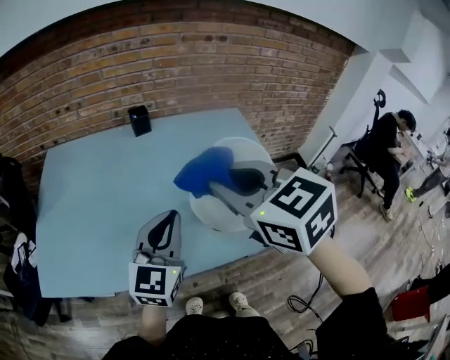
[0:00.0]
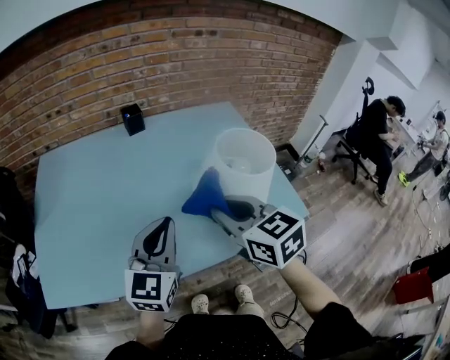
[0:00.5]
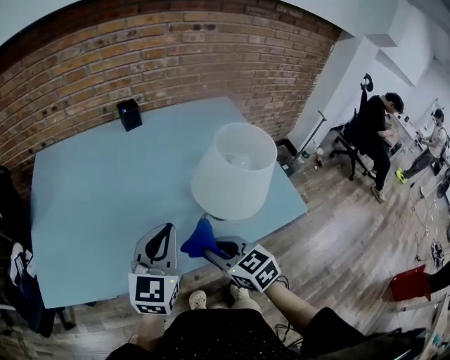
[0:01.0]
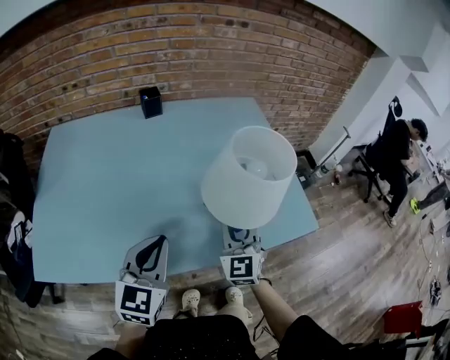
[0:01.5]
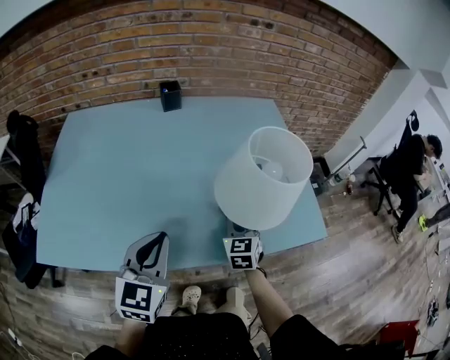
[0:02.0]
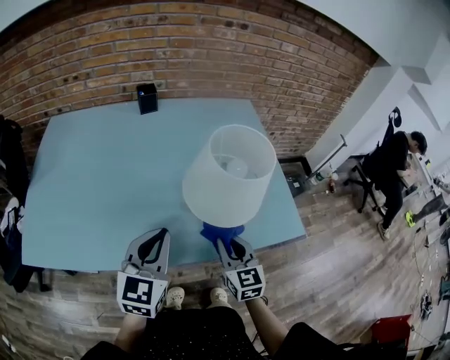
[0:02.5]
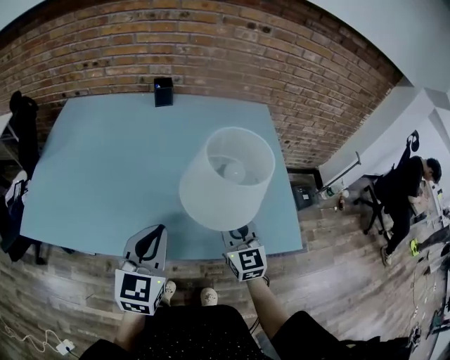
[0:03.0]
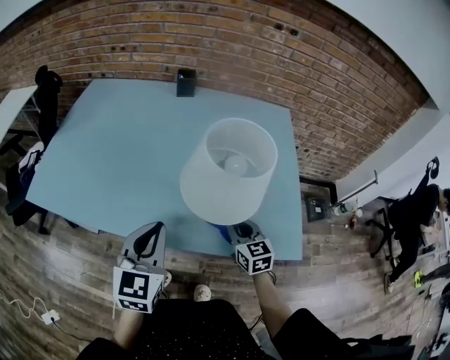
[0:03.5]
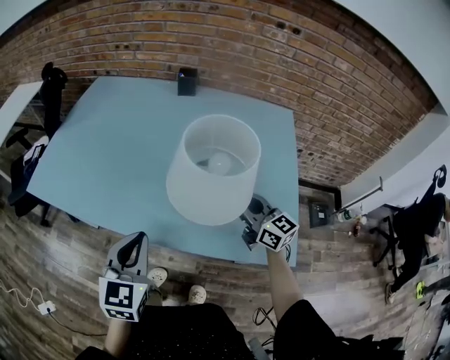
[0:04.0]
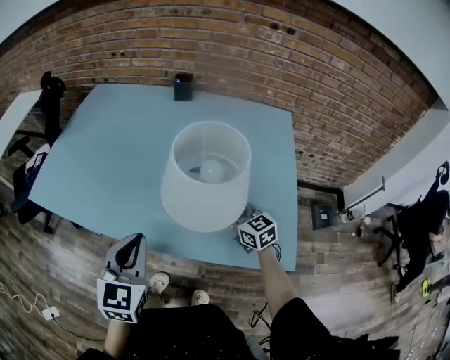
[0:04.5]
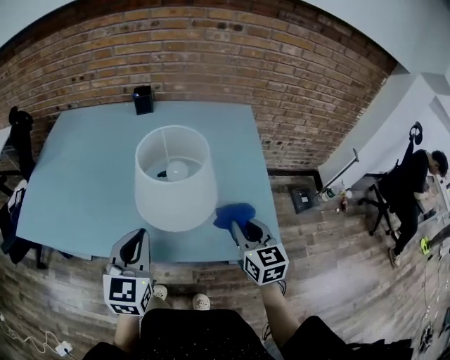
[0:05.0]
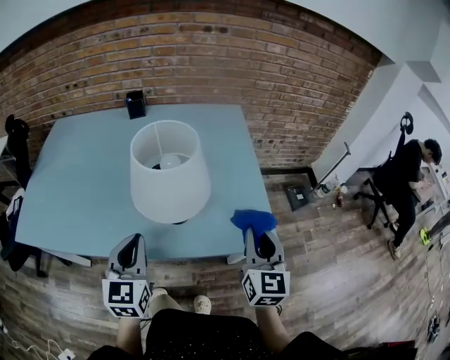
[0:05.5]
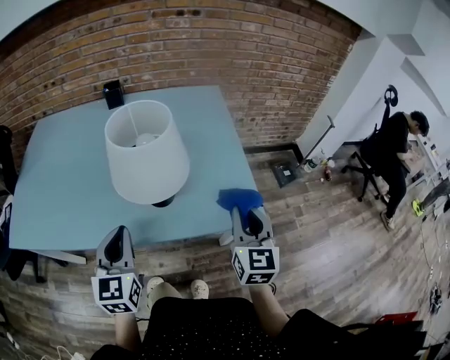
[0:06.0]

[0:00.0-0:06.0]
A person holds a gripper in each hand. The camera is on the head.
0:00.0 to 0:02.0: The left gripper goes roughly 10 cm downward, to the left and backward. The right gripper travels downward by about 35 cm, and changes its angle by about 30 degrees.
0:02.0 to 0:04.0: The left gripper moves some 15 cm, and turns by some 20 degrees. Meanwhile the right gripper goes up and down, approximately 10 cm each way, reversing 2 times, and changes its angle by about 60 degrees.
0:04.0 to 0:06.0: The right gripper changes place by about 20 cm, and changes its angle by about 60 degrees.

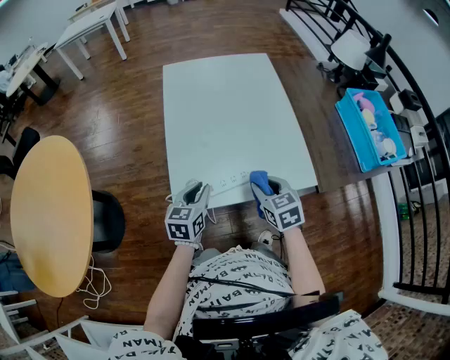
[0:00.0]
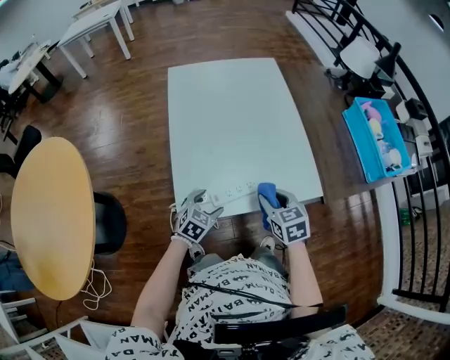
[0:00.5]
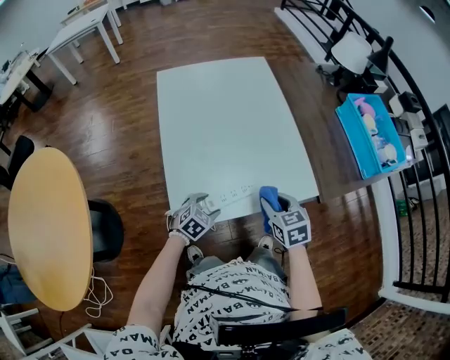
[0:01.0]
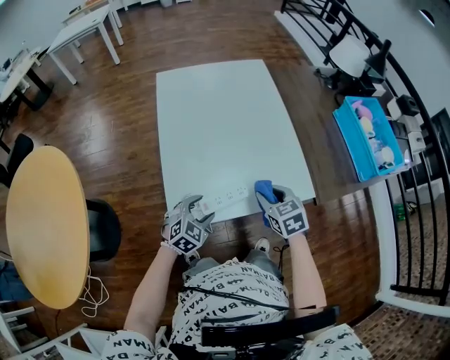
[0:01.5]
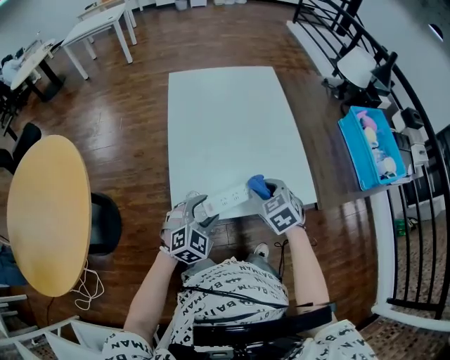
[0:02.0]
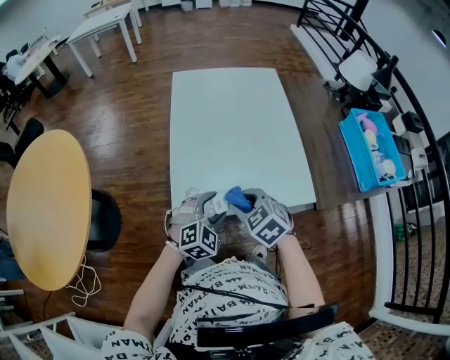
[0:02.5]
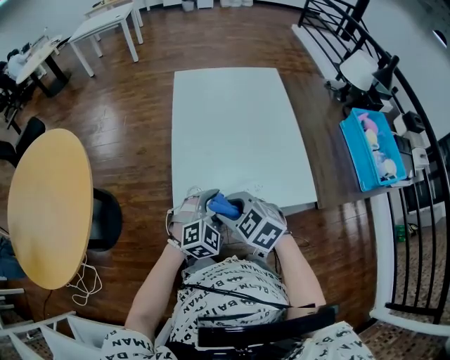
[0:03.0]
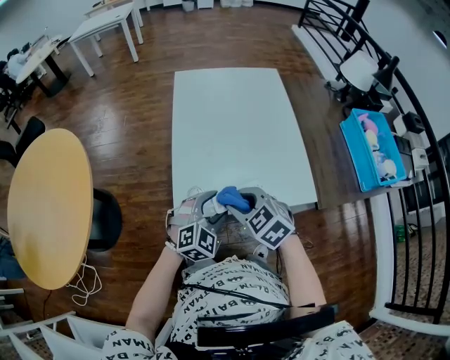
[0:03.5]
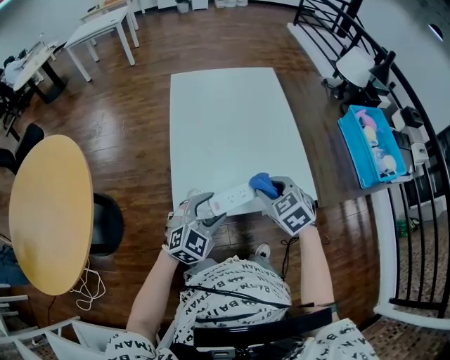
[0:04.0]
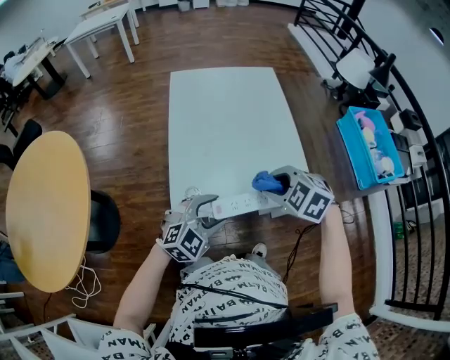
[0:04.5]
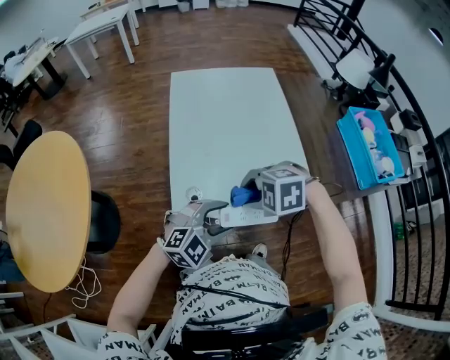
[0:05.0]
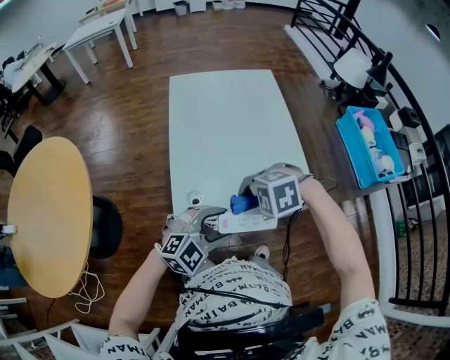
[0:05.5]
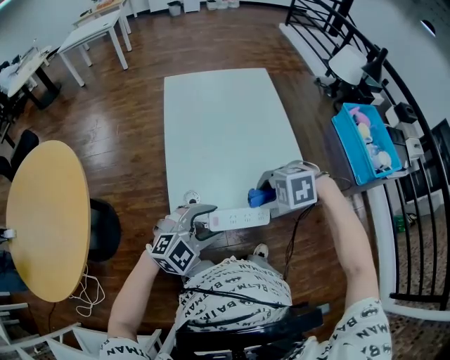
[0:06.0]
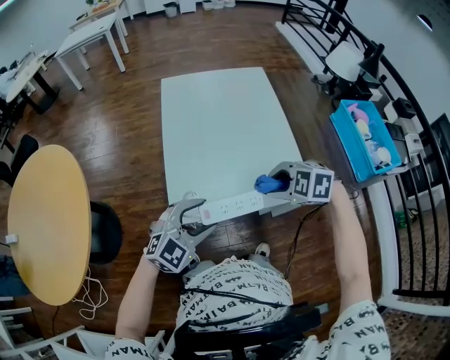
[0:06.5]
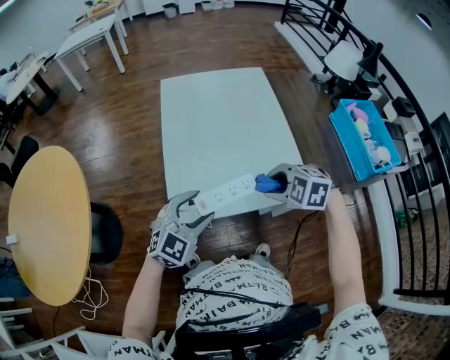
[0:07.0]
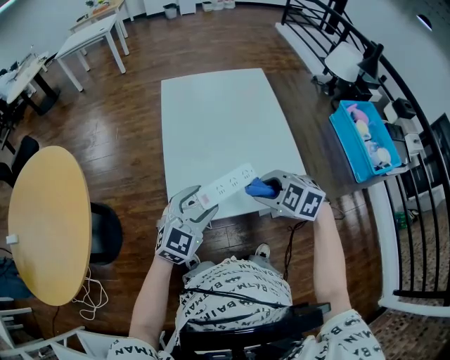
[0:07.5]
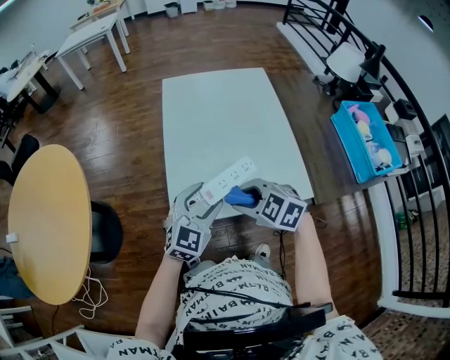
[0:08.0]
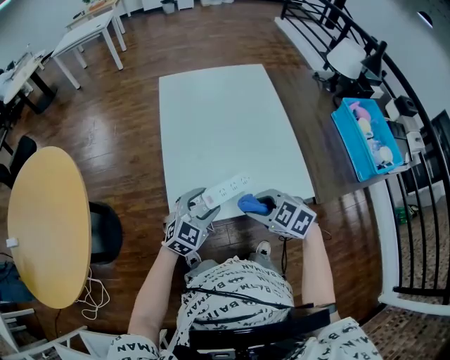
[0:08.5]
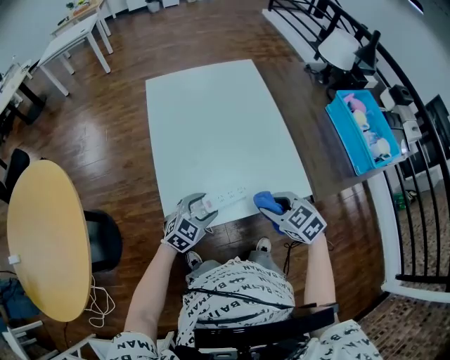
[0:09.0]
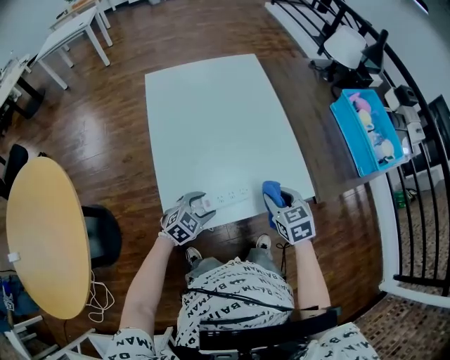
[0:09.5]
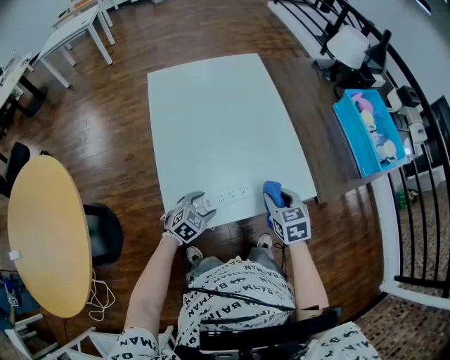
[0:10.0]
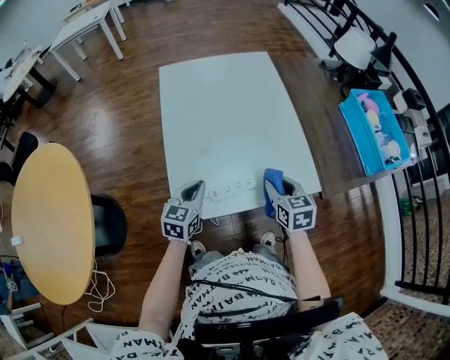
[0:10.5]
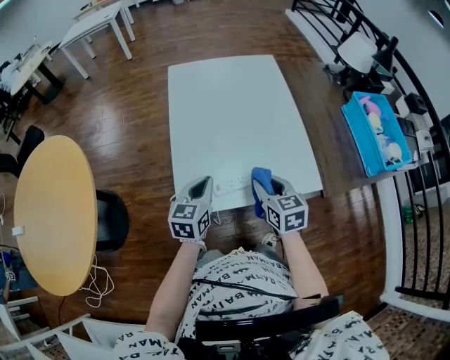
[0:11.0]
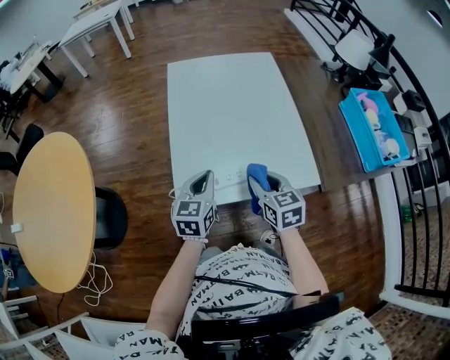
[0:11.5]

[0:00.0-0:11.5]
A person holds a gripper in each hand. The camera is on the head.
0:00.0 to 0:02.0: The left gripper goes downward and returns, some 15 cm each way, rolls clockwise, seen from behind, by approximately 50 degrees, and opens its fingers.
0:02.0 to 0:04.0: The right gripper reaches some 15 cm to the left, then returns.
0:04.0 to 0:06.0: The right gripper turns by about 60 degrees. The left gripper changes place by about 5 cm.
0:06.0 to 0:07.5: The right gripper changes its angle by some 30 degrees. Meanwhile the left gripper ends up some 10 cm from where it was, and changes its angle by about 30 degrees.
0:07.5 to 0:09.5: The right gripper changes place by about 15 cm, and rotates around the line of its fingers by some 40 degrees, clockwise from behind. Meanwhile the left gripper goes approximately 20 cm downward, and turns by approximately 30 degrees.
0:09.5 to 0:11.5: The left gripper is displaced upward by approximately 15 cm, rotates some 50 degrees, and closes its fingers; the right gripper moves to the left and upward, approximately 10 cm.

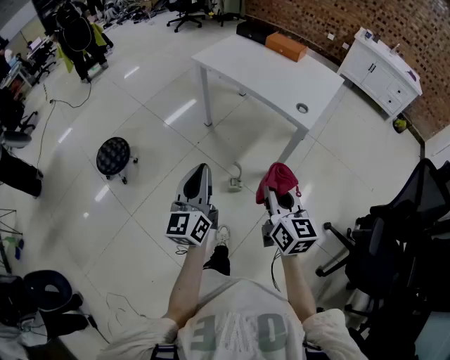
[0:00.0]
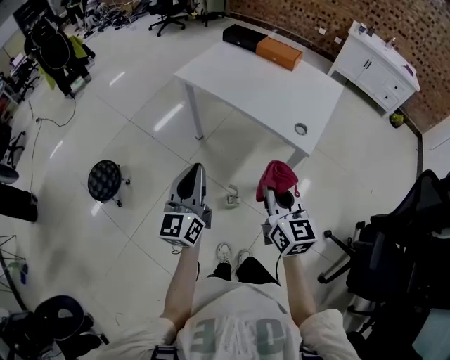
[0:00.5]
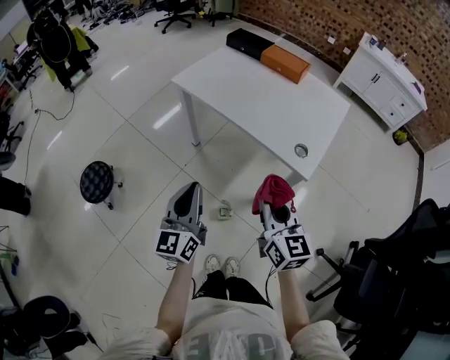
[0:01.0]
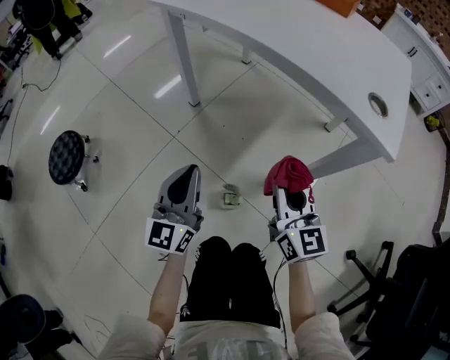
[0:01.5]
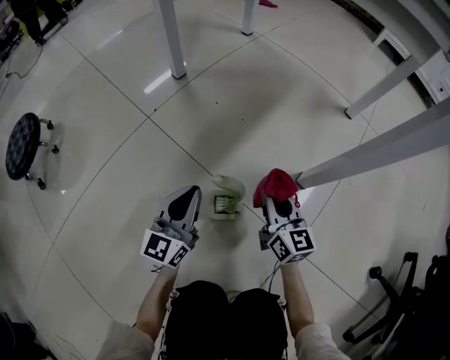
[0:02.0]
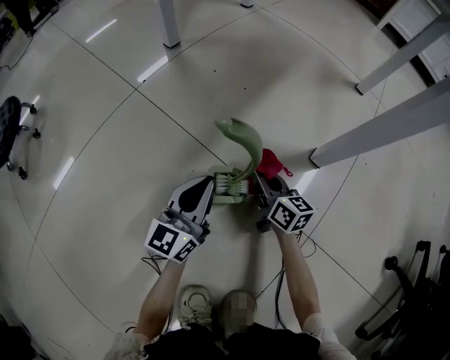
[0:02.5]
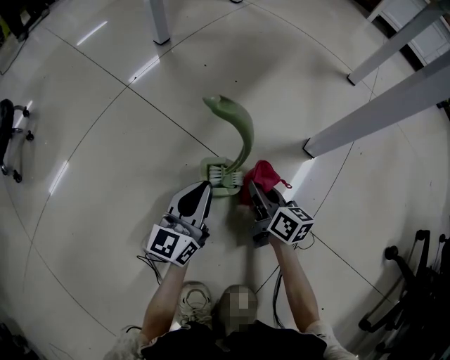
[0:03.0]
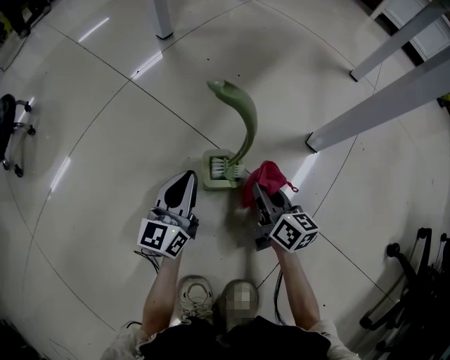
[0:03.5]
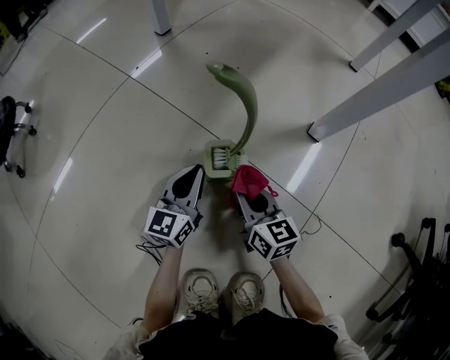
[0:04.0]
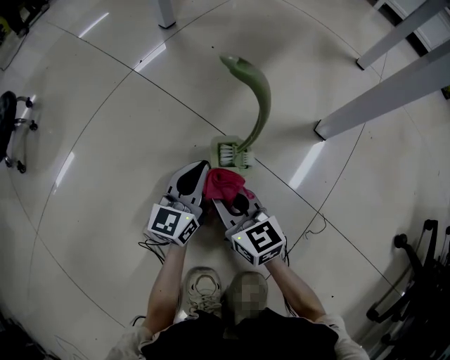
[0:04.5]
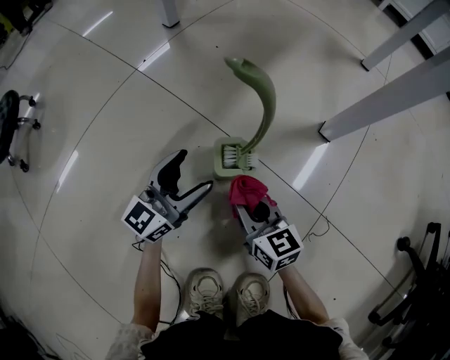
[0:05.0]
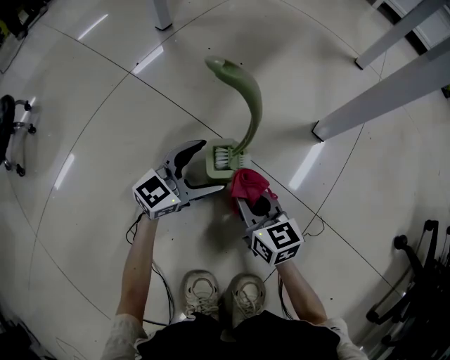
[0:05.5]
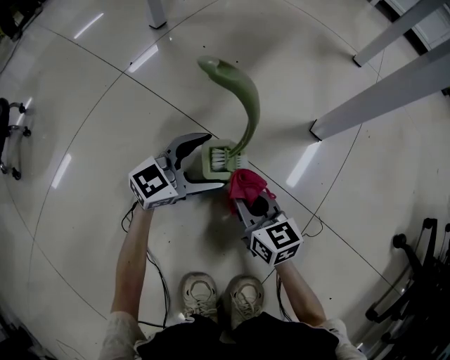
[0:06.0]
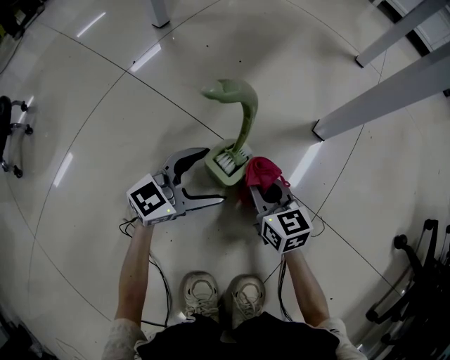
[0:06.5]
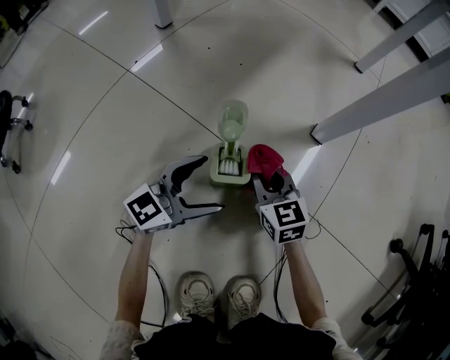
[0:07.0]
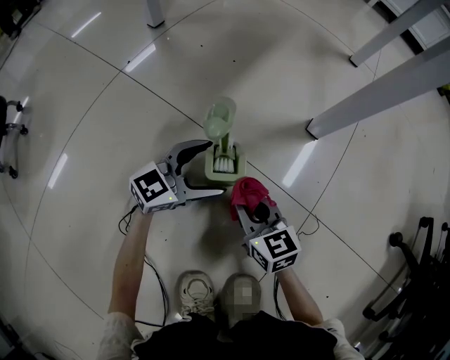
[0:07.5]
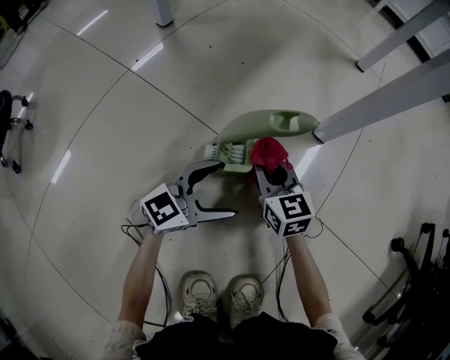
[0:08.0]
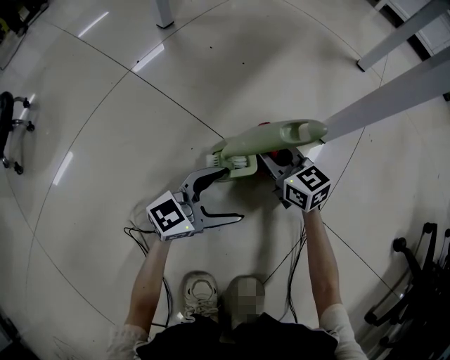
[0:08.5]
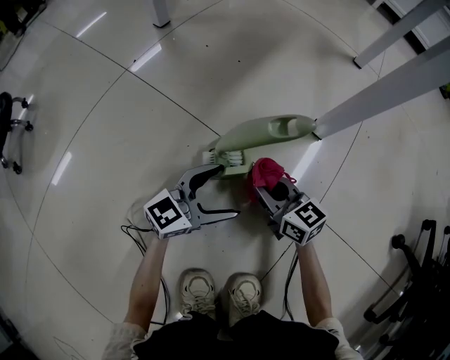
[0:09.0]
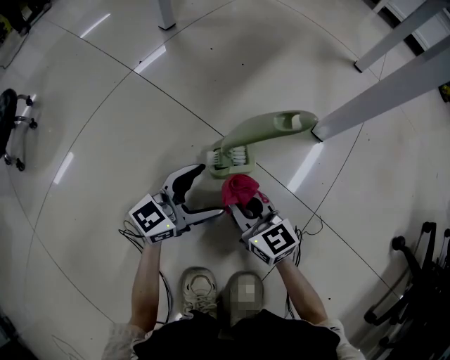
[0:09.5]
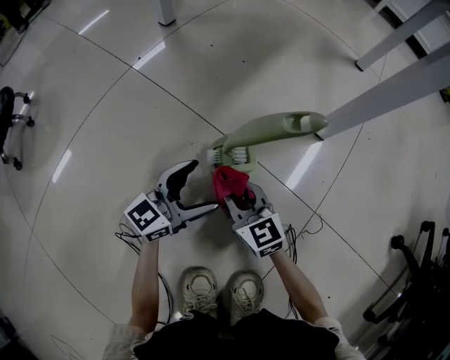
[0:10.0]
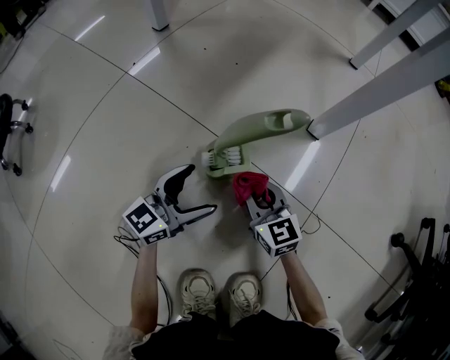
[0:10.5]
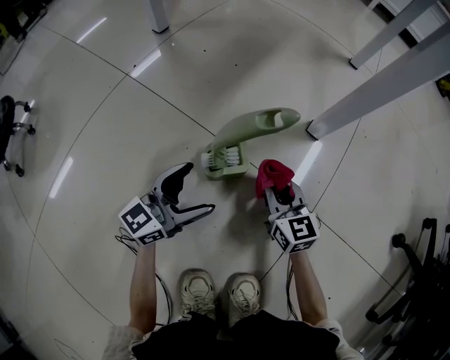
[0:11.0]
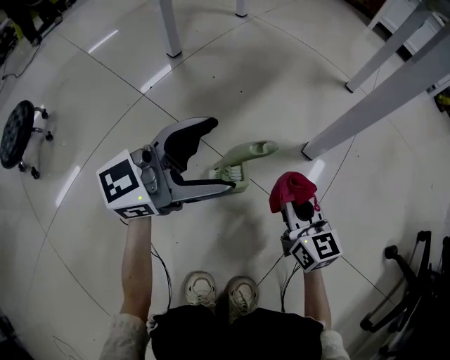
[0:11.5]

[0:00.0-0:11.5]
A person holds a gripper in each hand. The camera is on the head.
0:00.0 to 0:02.0: The left gripper moves downward, some 80 cm; the right gripper travels downward and forward by some 80 cm.
0:02.0 to 0:04.0: The right gripper travels downward, backward and to the left by some 20 cm, while the left gripper is displaced downward by approximately 15 cm.
0:04.0 to 0:06.0: The left gripper goes about 5 cm to the right, turns by approximately 40 degrees, and opens its fingers.
0:06.0 to 0:07.5: The right gripper reaches approximately 5 cm forward, then returns.
0:07.5 to 0:09.5: The left gripper is displaced backward by some 5 cm; the right gripper moves approximately 15 cm forward and comes back.
0:09.5 to 0:11.5: The right gripper shifts roughly 20 cm to the right, upward and forward. Meanwhile the left gripper moves upward, some 25 cm.
